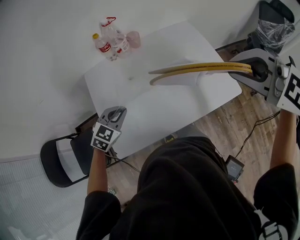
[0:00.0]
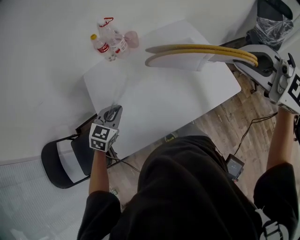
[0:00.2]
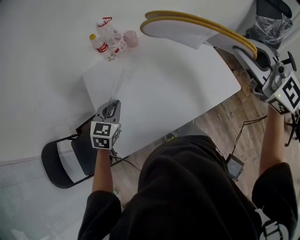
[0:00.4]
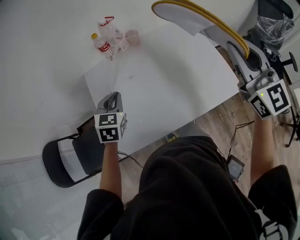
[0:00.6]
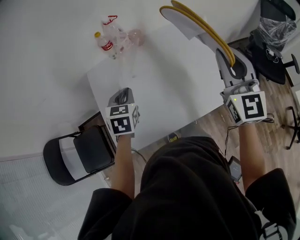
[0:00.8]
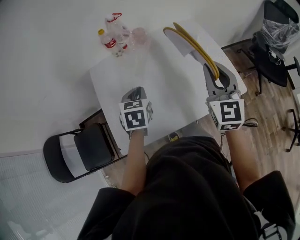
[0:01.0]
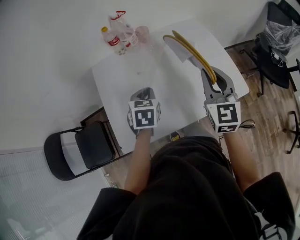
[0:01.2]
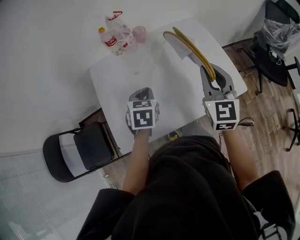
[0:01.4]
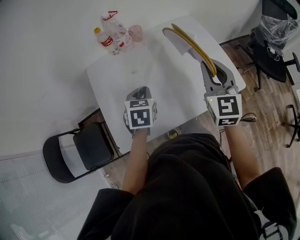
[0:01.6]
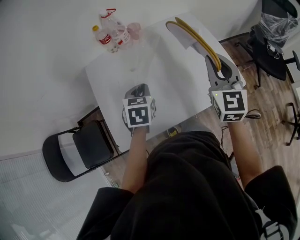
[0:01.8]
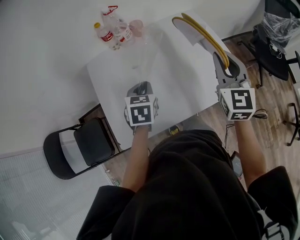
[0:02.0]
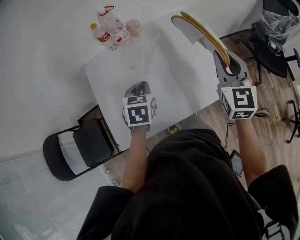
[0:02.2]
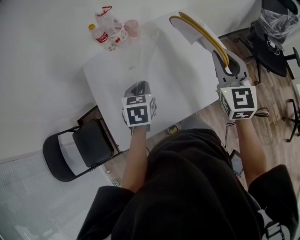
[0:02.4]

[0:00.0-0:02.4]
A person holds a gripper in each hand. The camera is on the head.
0:00.0 to 0:01.2: The left gripper heads to the right, covering roughly 10 cm, and swivels roughly 40 degrees; the right gripper is displaced downward and forward by approximately 15 cm, and rotates some 50 degrees.
0:01.2 to 0:02.4: The right gripper travels to the right by approximately 5 cm.

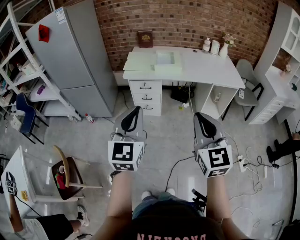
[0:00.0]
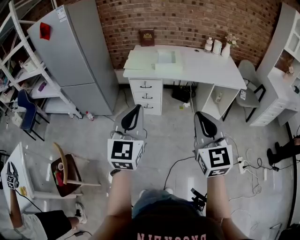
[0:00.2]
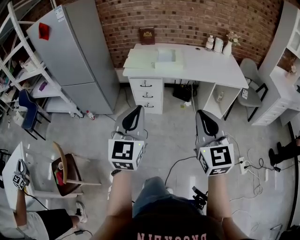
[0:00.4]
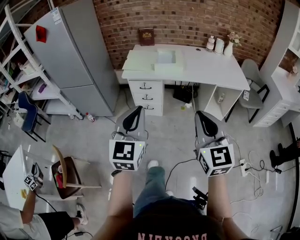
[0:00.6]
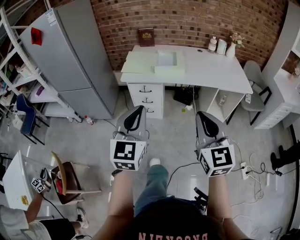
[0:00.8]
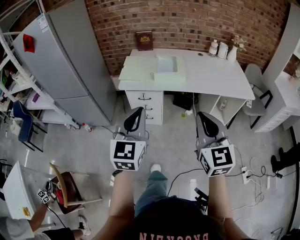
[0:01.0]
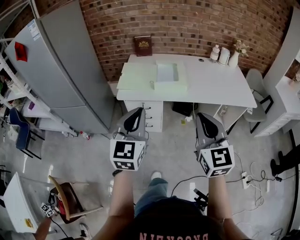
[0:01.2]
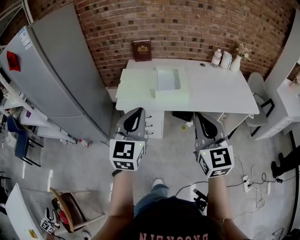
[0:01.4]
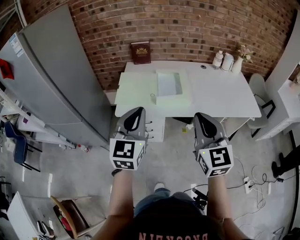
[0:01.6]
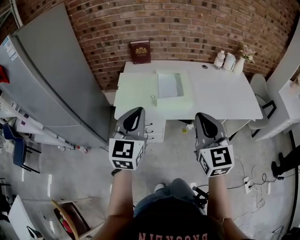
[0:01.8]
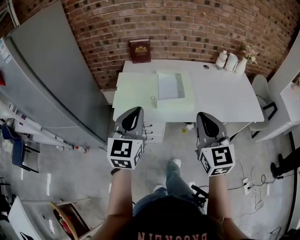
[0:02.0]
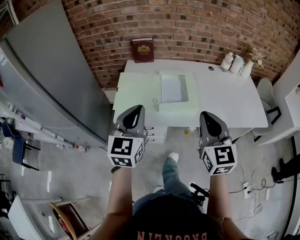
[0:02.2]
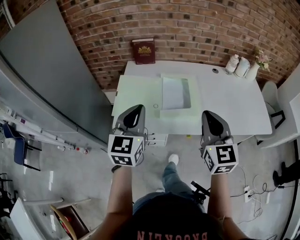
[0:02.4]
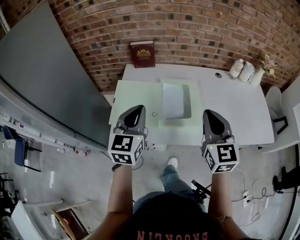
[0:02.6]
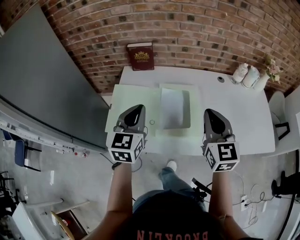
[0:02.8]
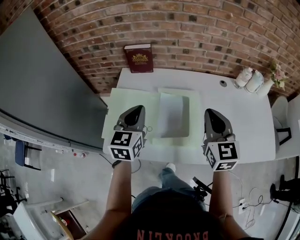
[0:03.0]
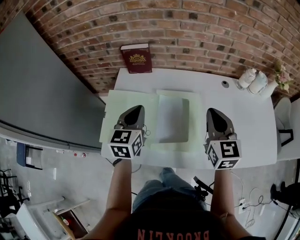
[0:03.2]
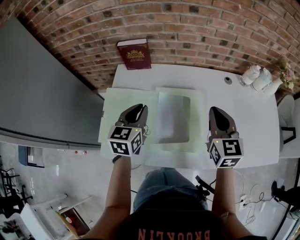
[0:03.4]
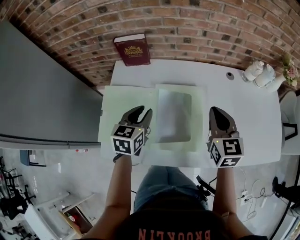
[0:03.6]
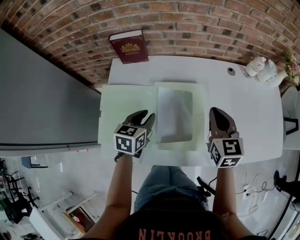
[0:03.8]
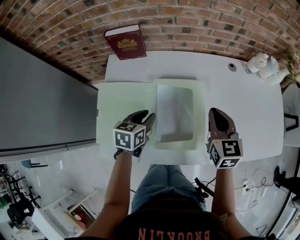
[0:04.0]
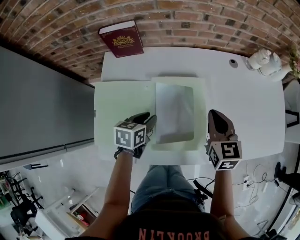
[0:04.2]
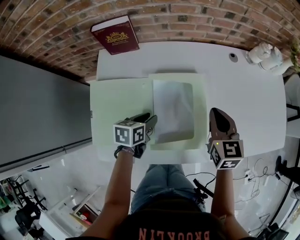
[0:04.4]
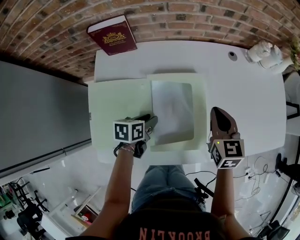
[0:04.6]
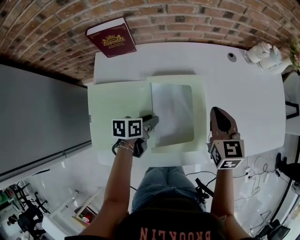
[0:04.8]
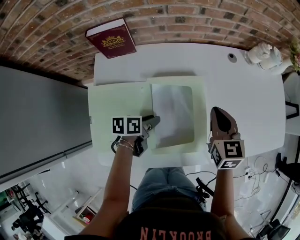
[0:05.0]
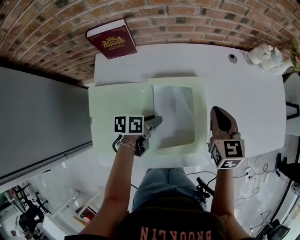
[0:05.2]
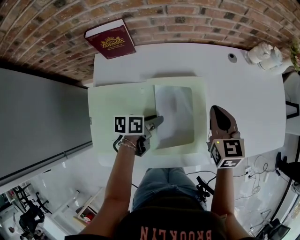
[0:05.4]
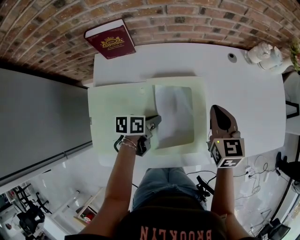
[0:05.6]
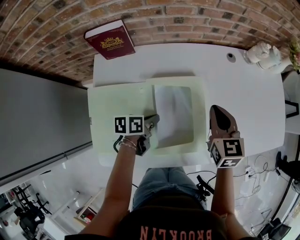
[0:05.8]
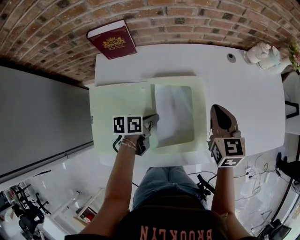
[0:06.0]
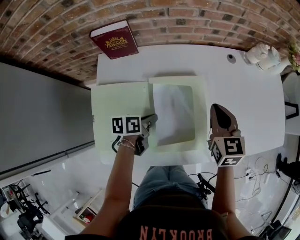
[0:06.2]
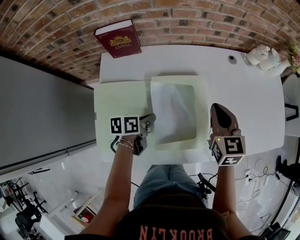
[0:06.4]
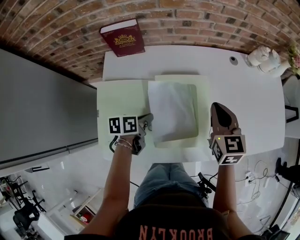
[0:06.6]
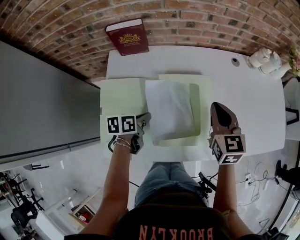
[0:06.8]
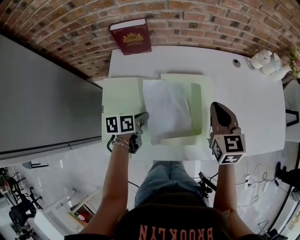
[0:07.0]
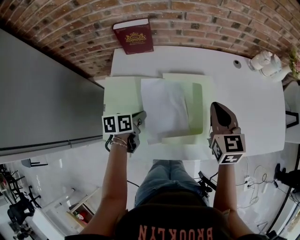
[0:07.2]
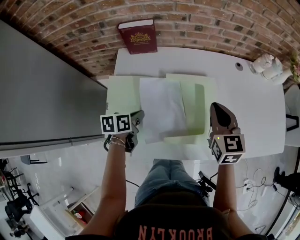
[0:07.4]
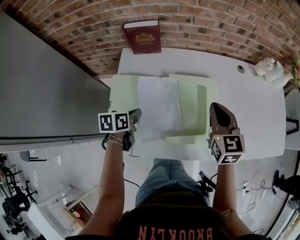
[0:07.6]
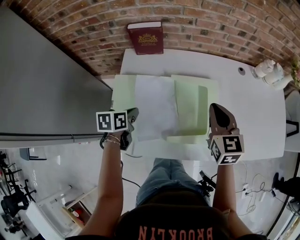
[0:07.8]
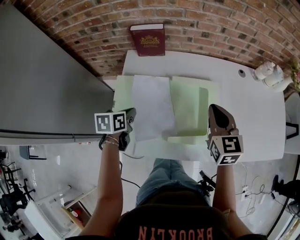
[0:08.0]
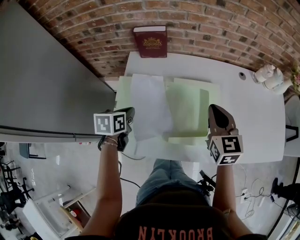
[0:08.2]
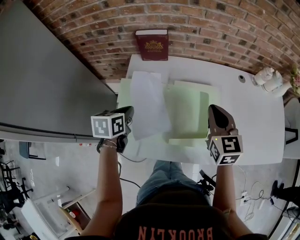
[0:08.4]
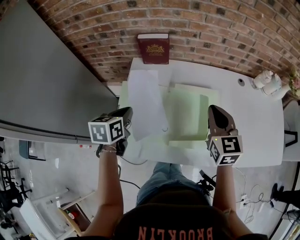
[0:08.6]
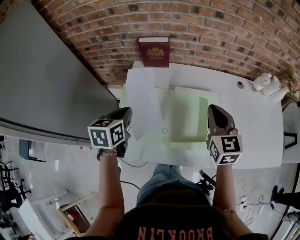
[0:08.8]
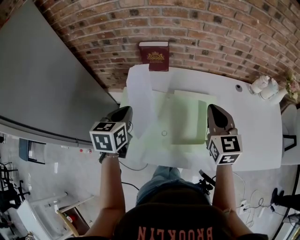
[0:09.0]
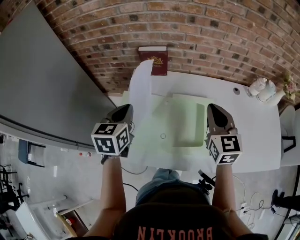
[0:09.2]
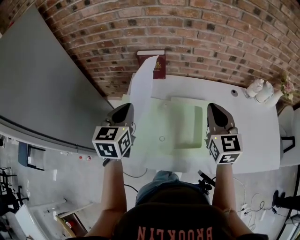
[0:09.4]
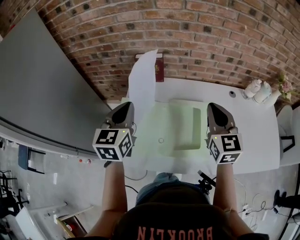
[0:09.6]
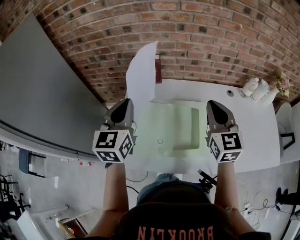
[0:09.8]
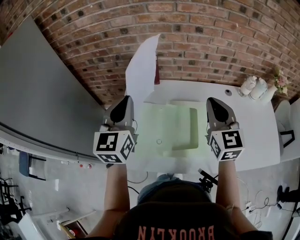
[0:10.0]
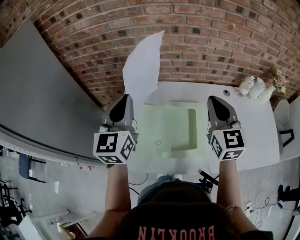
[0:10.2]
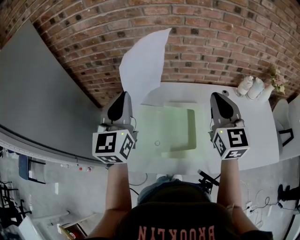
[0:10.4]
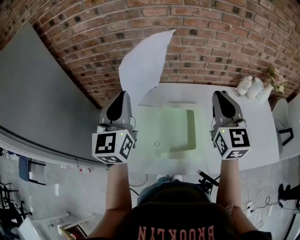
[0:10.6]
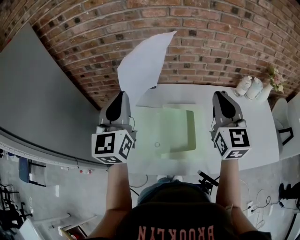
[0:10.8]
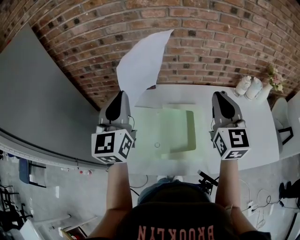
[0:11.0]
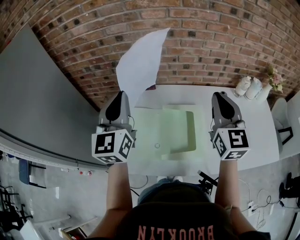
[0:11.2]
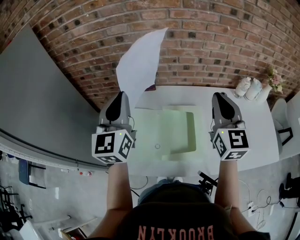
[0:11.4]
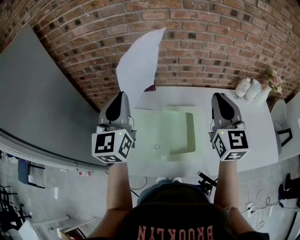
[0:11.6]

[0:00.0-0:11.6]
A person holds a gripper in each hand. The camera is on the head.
0:00.0 to 0:01.4: The grippers both shift forward by about 35 cm.
0:01.4 to 0:02.8: The two grippers go about 35 cm forward.
0:02.8 to 0:04.4: The left gripper is displaced downward by approximately 25 cm, tilts its fingers some 30 degrees downward, and opens its fingers. The right gripper moves downward and forward, approximately 20 cm, and turns by about 20 degrees.
0:04.4 to 0:05.8: The left gripper turns by approximately 20 degrees, and closes.
0:05.8 to 0:07.2: The right gripper ends up about 5 cm from where it was; the left gripper shifts approximately 10 cm to the left and backward.
0:07.2 to 0:08.8: The left gripper shifts roughly 20 cm upward and to the left, and swivels roughly 30 degrees, while the right gripper moves upward and to the left, approximately 10 cm.
0:08.8 to 0:10.2: The right gripper heads upward, covering some 10 cm. The left gripper moves upward, some 20 cm, and tips its fingers upward by about 40 degrees.
0:10.2 to 0:11.6: There are only small adjustments of the grippers.

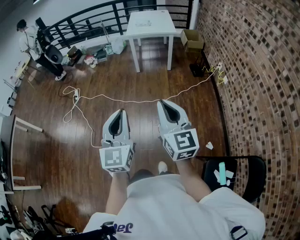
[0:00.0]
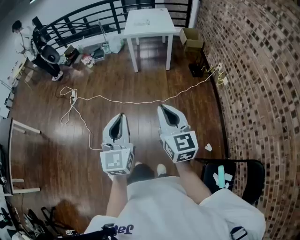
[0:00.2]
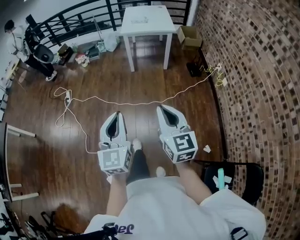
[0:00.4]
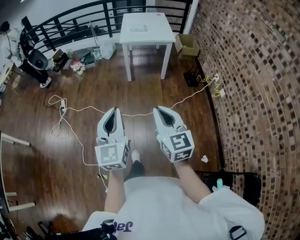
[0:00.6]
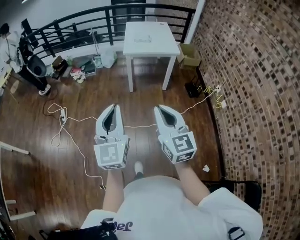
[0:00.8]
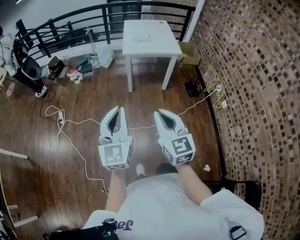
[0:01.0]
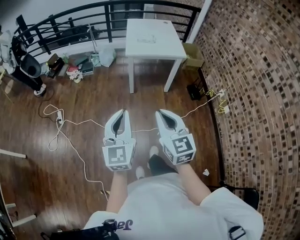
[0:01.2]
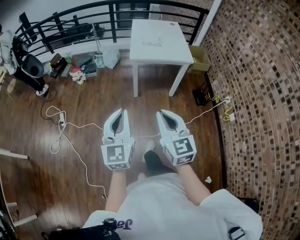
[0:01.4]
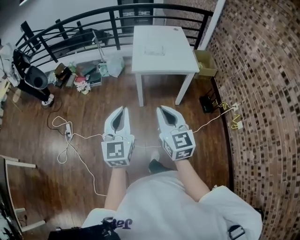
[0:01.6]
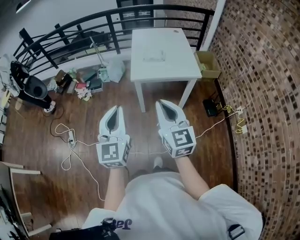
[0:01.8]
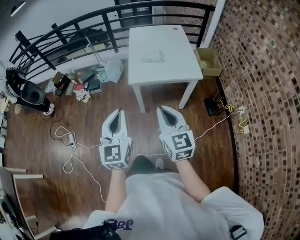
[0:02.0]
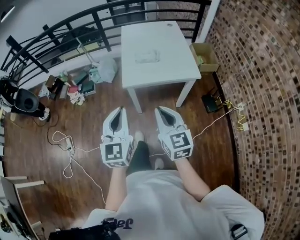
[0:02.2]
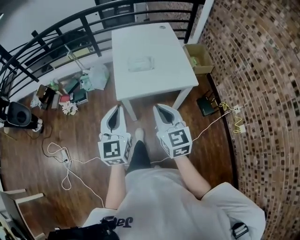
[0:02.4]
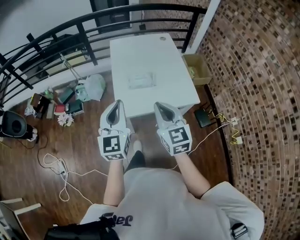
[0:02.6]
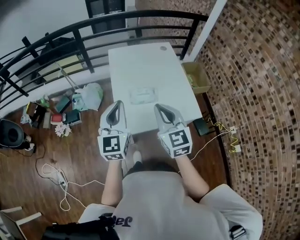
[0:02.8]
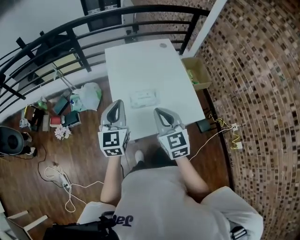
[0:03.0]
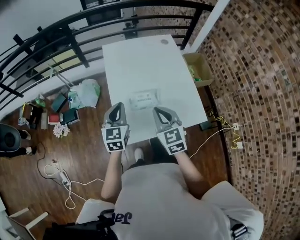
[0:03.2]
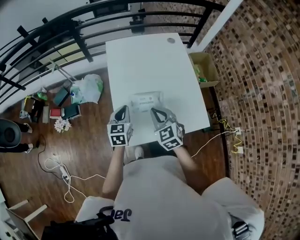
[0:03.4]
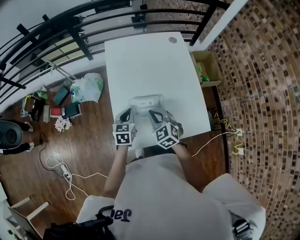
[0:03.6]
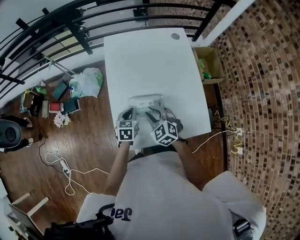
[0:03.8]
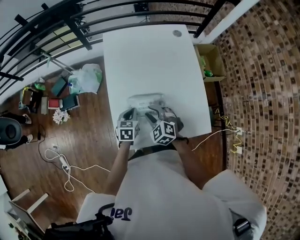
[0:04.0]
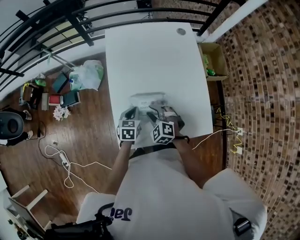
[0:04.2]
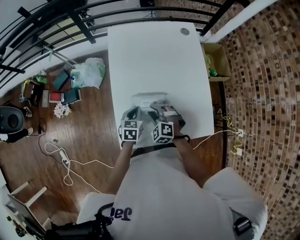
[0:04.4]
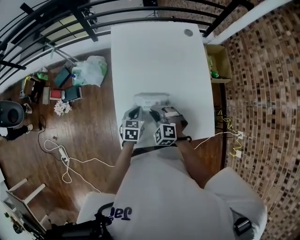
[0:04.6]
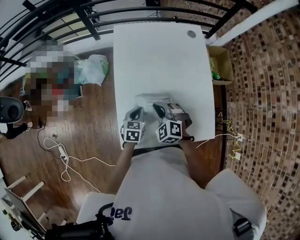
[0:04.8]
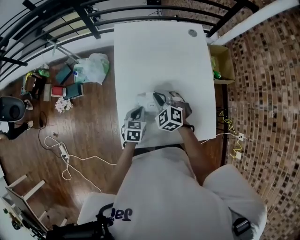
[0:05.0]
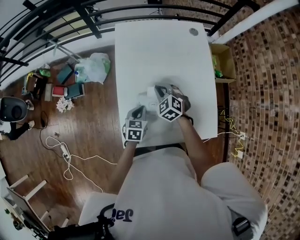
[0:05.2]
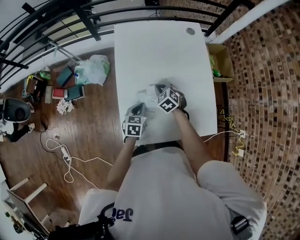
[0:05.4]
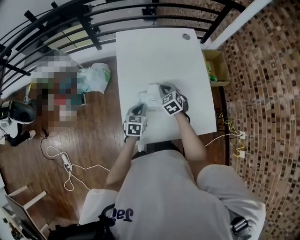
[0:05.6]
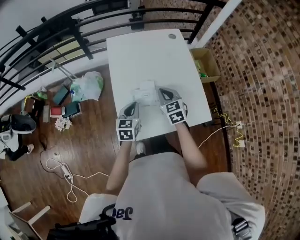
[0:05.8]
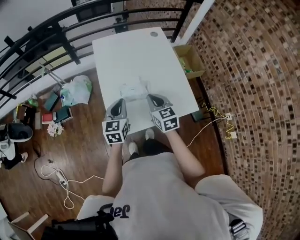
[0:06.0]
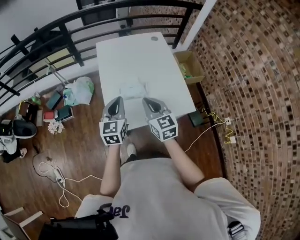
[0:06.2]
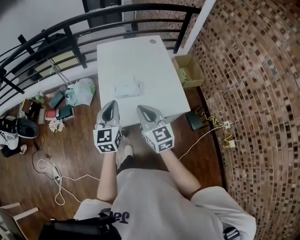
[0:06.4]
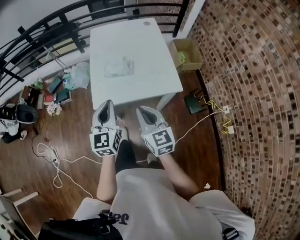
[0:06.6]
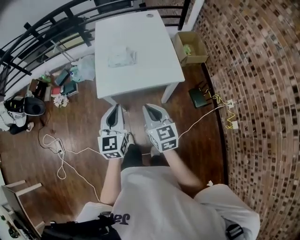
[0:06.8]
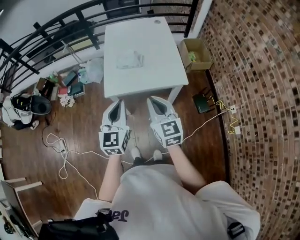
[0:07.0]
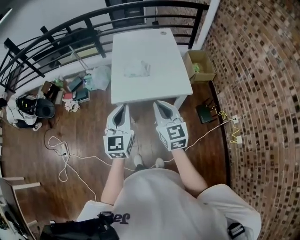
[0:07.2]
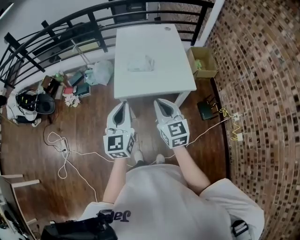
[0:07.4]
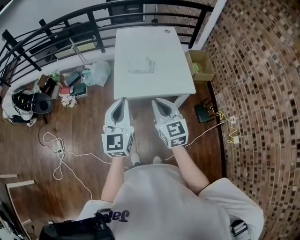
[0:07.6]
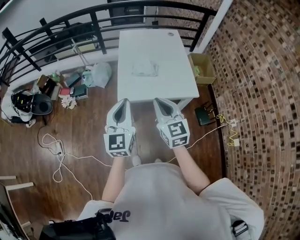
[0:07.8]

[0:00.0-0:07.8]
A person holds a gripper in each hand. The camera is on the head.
0:00.0 to 0:01.6: The two grippers travel together, forward, about 70 cm.
0:01.6 to 0:03.2: The pair of grippers is taken forward, about 70 cm. The right gripper changes its angle by approximately 20 degrees; the left gripper changes its angle by some 20 degrees.
0:03.2 to 0:04.6: The left gripper is displaced downward by approximately 20 cm, and changes its angle by approximately 30 degrees. Meanwhile the right gripper moves downward and forward, approximately 20 cm, twists some 50 degrees counterclockwise, seen from behind, and opens, then closes once more.
0:04.6 to 0:06.2: Both grippers travel together upward and backward, approximately 25 cm. The right gripper twists roughly 50 degrees clockwise, seen from behind, while the left gripper points its fingers about 30 degrees further upward.
0:06.2 to 0:07.8: The right gripper shifts about 20 cm backward; the left gripper is displaced backward and upward by approximately 30 cm.

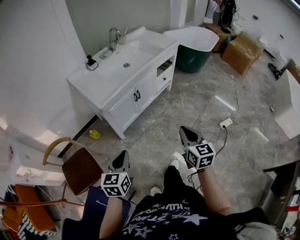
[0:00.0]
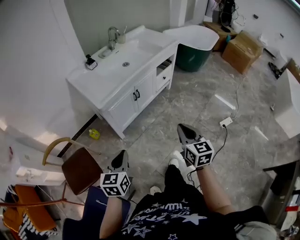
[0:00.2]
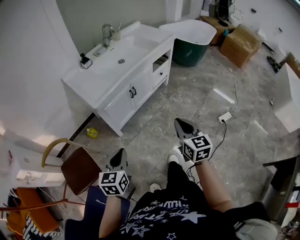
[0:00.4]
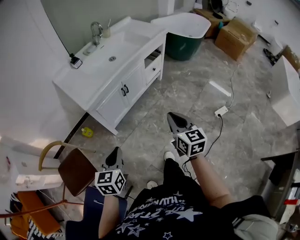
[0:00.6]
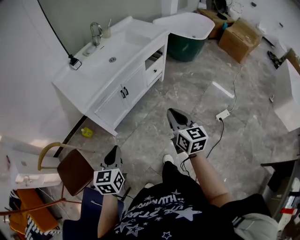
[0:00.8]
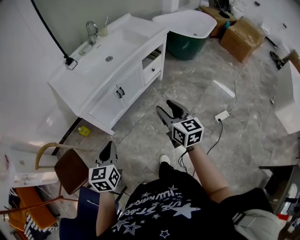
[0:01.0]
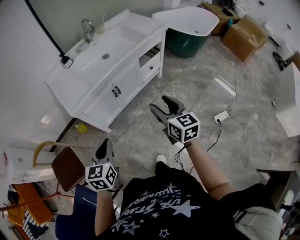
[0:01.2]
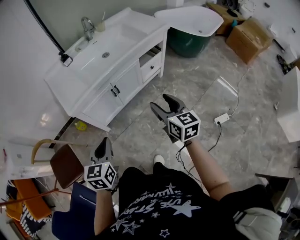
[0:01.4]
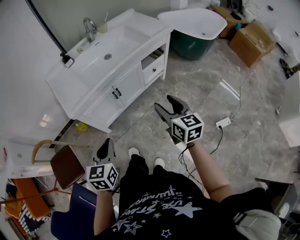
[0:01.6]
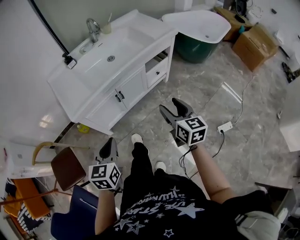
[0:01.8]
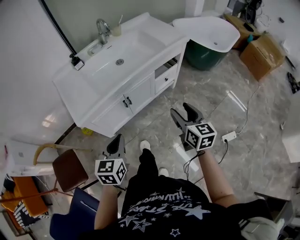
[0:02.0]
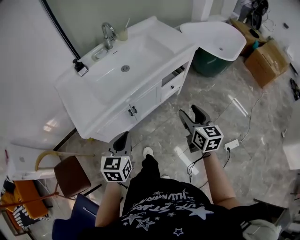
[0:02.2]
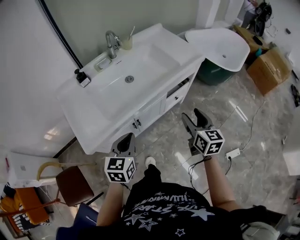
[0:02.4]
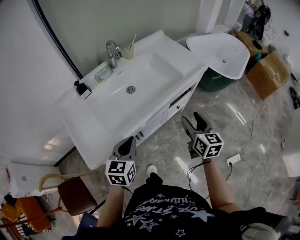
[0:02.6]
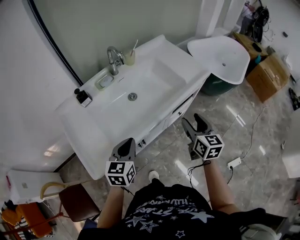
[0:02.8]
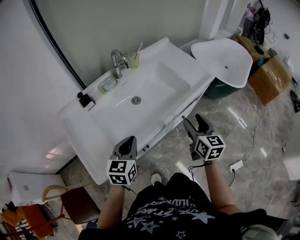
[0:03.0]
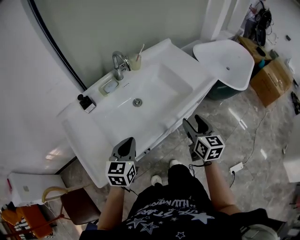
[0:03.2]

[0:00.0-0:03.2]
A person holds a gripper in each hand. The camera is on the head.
0:00.0 to 0:01.6: The left gripper heads to the right and forward, covering some 25 cm; the right gripper travels forward and to the right by some 25 cm, and opens its fingers.
0:01.6 to 0:03.2: Both grippers travel together forward, approximately 40 cm.
